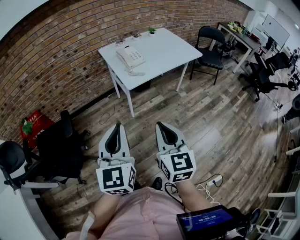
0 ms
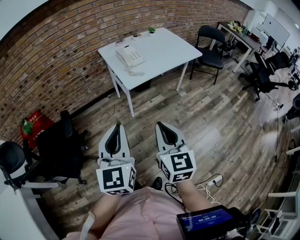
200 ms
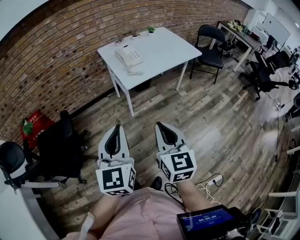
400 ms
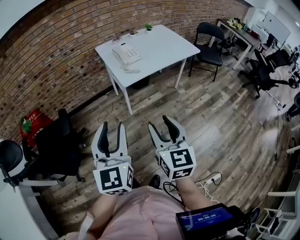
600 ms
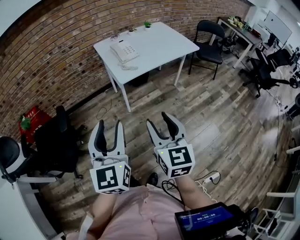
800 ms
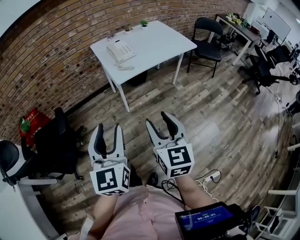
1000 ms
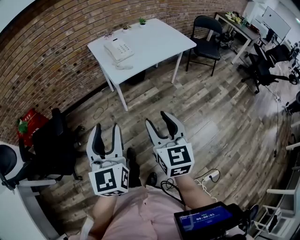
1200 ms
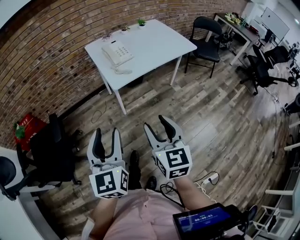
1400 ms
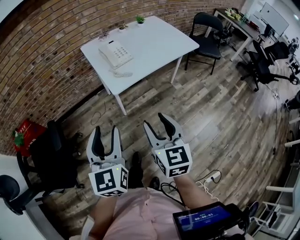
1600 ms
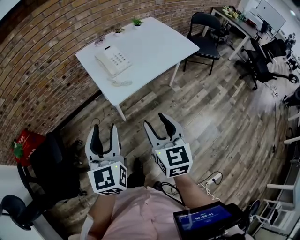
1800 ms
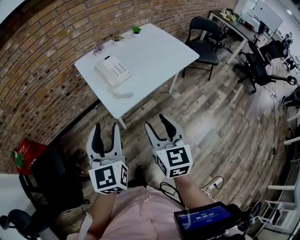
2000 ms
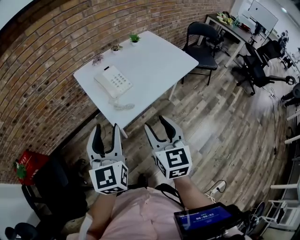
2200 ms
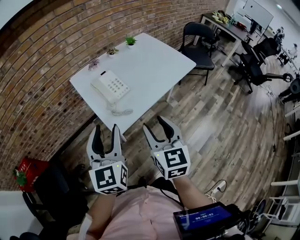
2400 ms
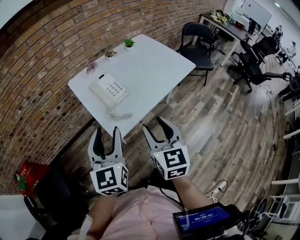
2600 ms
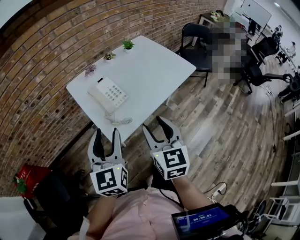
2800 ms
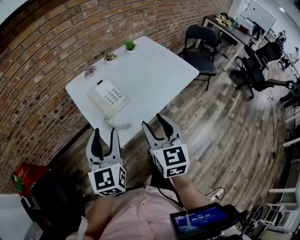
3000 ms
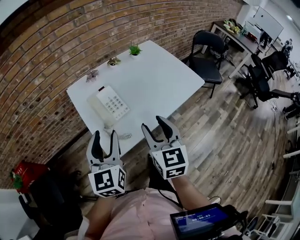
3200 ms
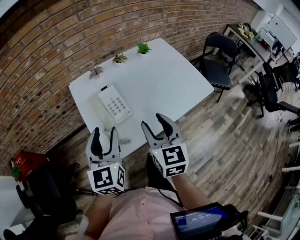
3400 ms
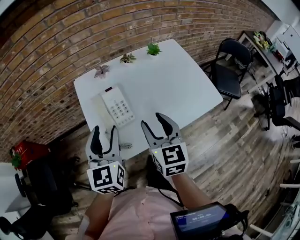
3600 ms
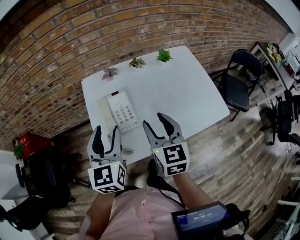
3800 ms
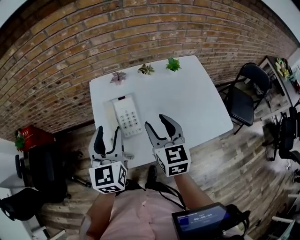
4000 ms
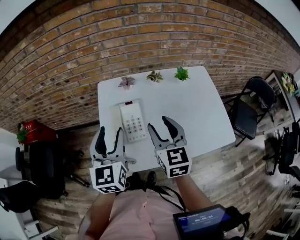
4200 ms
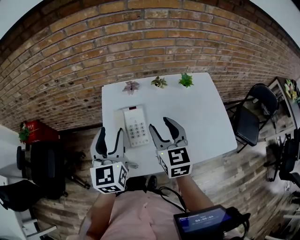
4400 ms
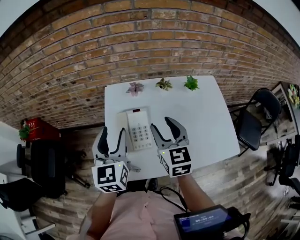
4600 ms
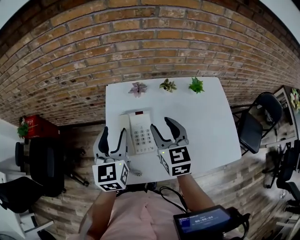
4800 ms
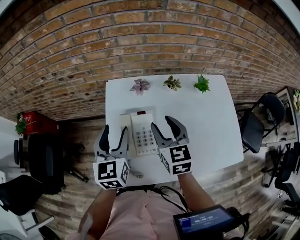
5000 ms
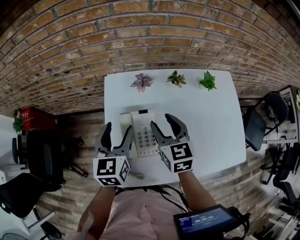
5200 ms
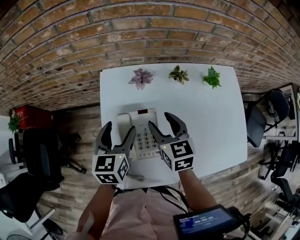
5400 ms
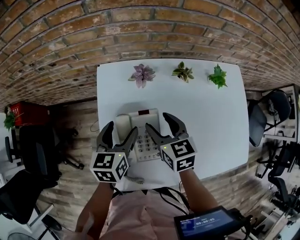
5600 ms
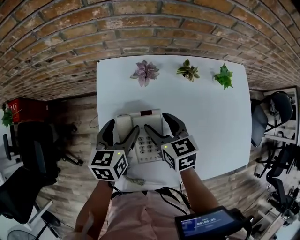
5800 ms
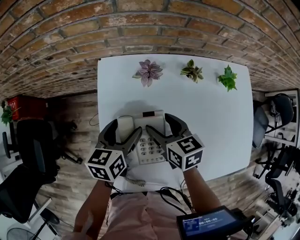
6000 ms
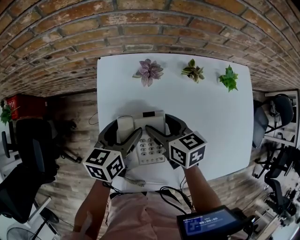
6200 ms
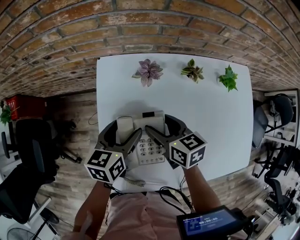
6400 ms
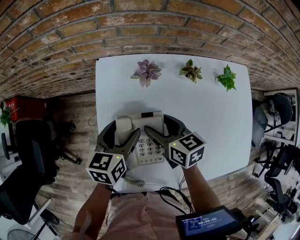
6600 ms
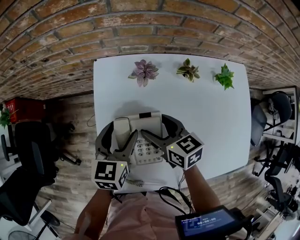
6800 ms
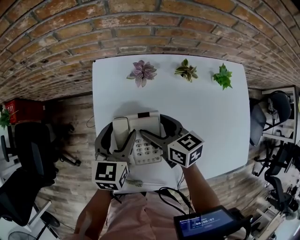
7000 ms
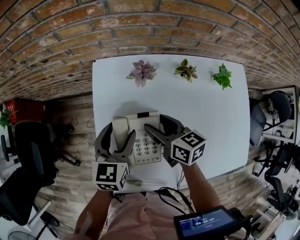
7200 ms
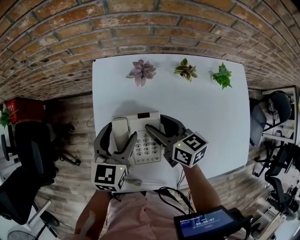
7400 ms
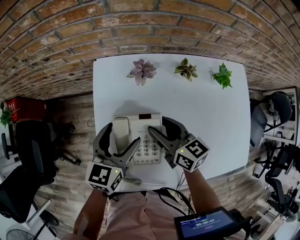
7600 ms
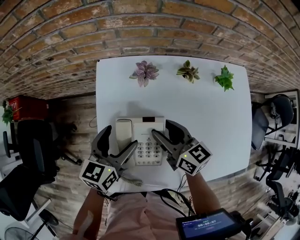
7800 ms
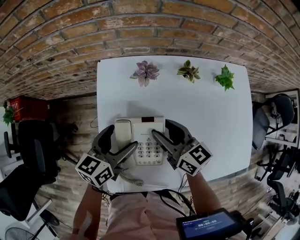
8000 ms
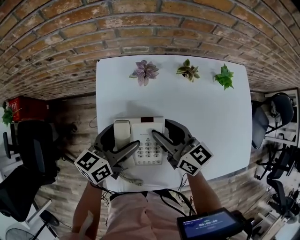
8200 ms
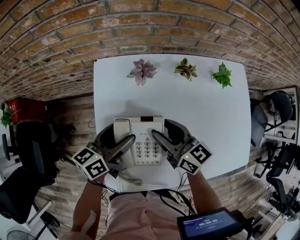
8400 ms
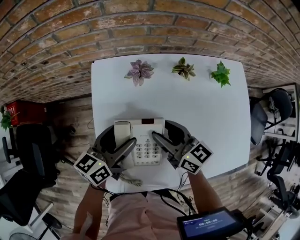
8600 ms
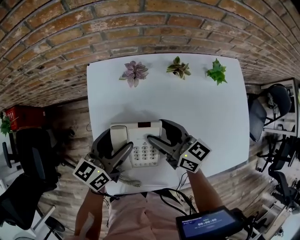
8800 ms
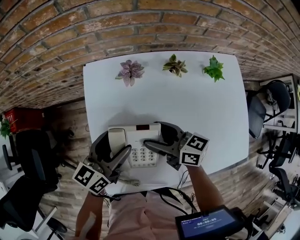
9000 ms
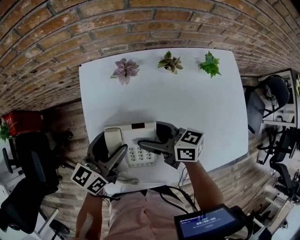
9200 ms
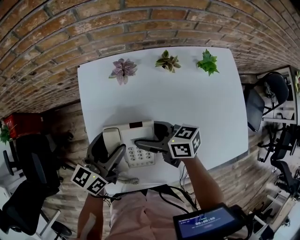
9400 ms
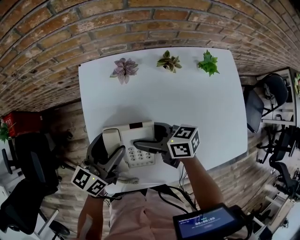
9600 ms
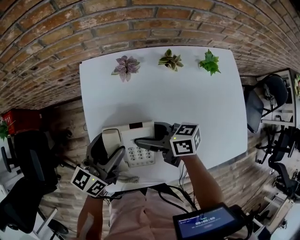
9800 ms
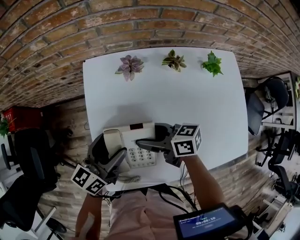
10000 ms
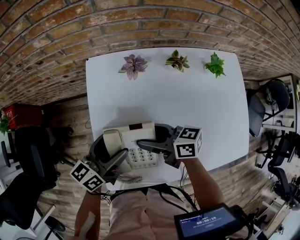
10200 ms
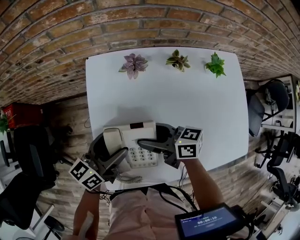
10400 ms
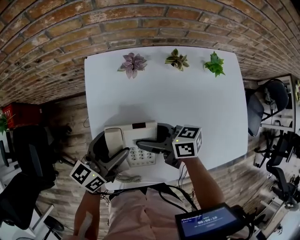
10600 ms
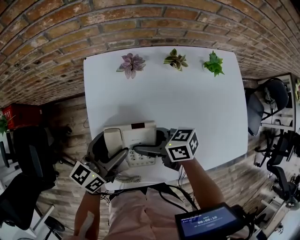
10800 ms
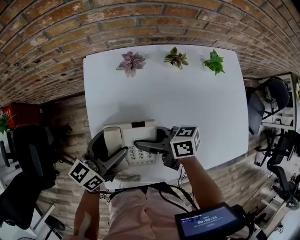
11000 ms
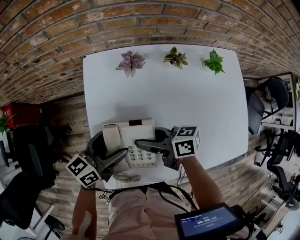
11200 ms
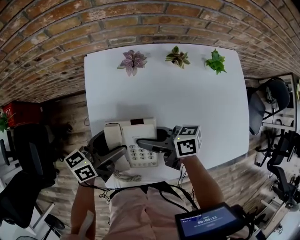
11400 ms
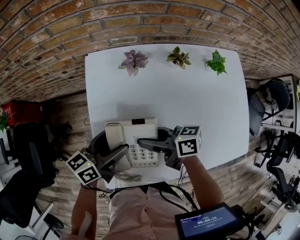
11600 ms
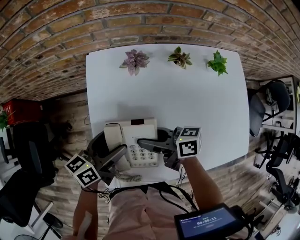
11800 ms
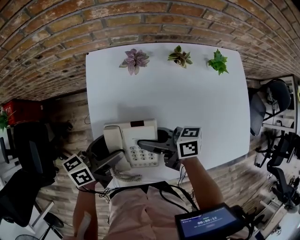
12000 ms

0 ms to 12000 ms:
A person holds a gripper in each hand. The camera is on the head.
0 ms to 1600 ms: The left gripper goes about 15 cm forward and downward, and opens up. The right gripper heads forward, covering some 15 cm, and opens its fingers.
1600 ms to 3000 ms: The grippers both shift forward by approximately 30 cm.
3000 ms to 4400 ms: The left gripper moves about 15 cm, and turns by approximately 30 degrees; the right gripper ends up approximately 25 cm from where it was, and changes its angle by about 30 degrees.
4400 ms to 6000 ms: Both grippers travel together downward and forward, about 25 cm. The left gripper swivels approximately 40 degrees; the right gripper rotates some 40 degrees.
7600 ms to 9000 ms: The right gripper opens up, while the left gripper changes its angle by about 20 degrees.
9000 ms to 10400 ms: The grippers move only a little.
10400 ms to 12000 ms: The grippers move only a little.

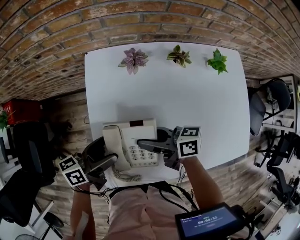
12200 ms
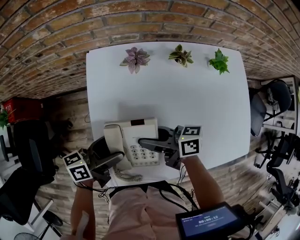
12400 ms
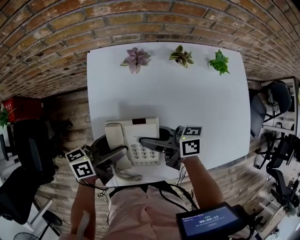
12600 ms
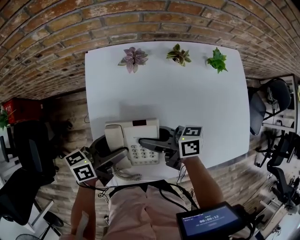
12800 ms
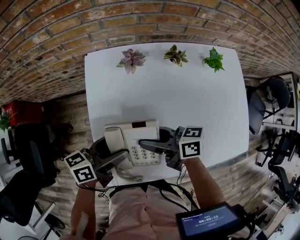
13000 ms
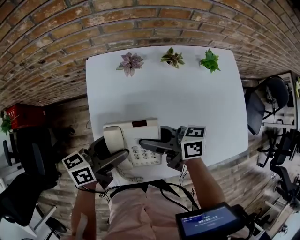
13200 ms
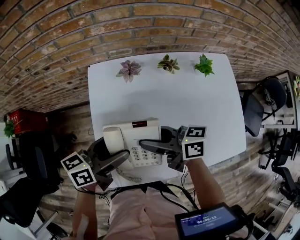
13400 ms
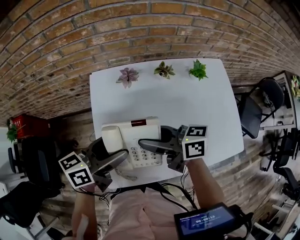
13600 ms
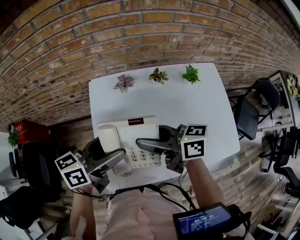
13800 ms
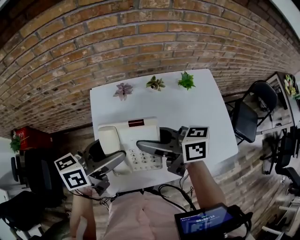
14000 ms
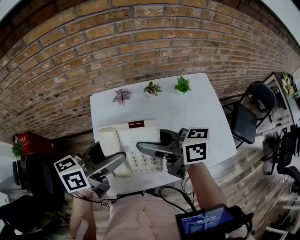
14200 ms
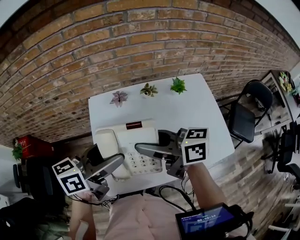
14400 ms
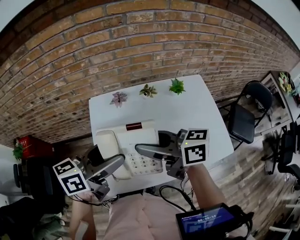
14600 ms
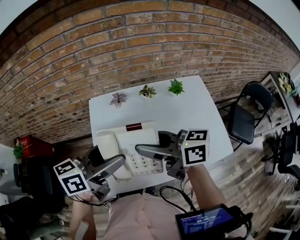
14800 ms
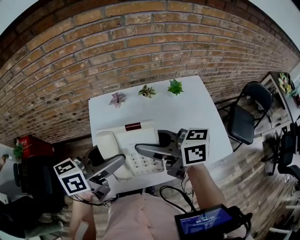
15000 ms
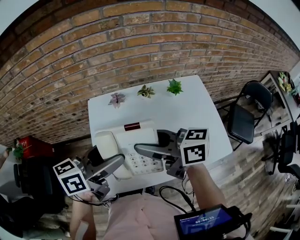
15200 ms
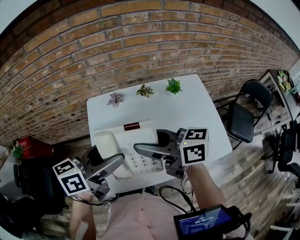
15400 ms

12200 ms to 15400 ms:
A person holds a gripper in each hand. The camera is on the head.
12200 ms to 13800 ms: Both grippers travel together upward, some 15 cm.
13800 ms to 15400 ms: The grippers both shift upward by about 10 cm.

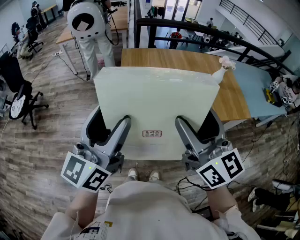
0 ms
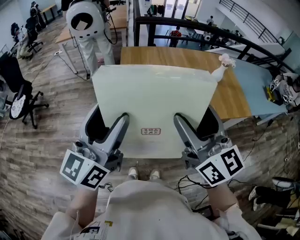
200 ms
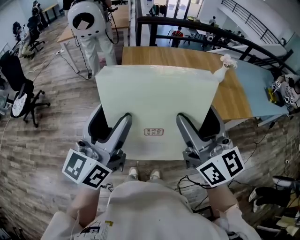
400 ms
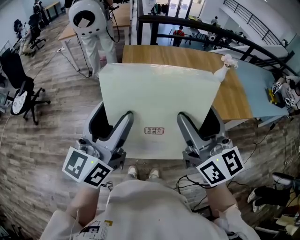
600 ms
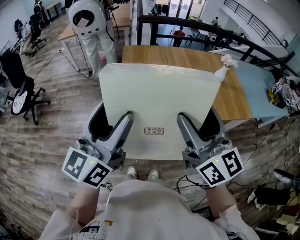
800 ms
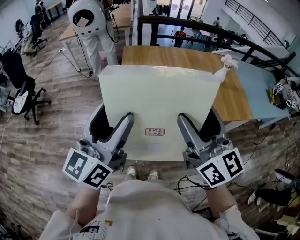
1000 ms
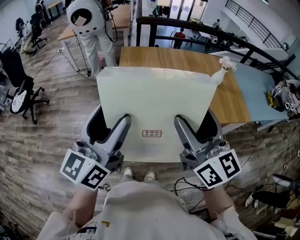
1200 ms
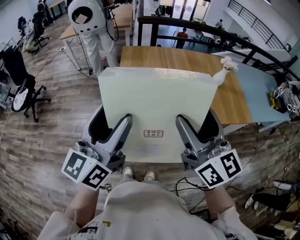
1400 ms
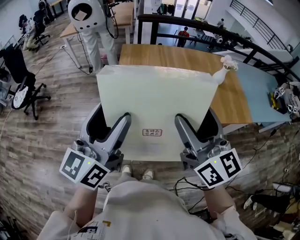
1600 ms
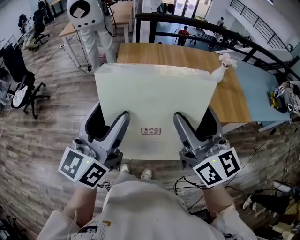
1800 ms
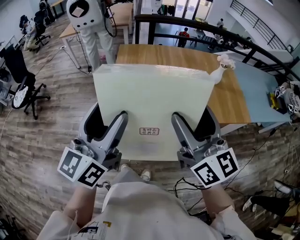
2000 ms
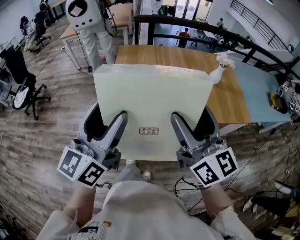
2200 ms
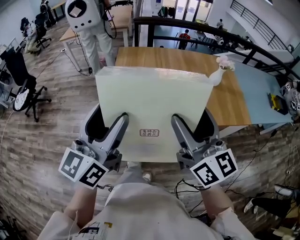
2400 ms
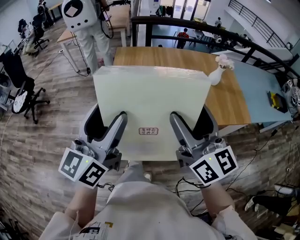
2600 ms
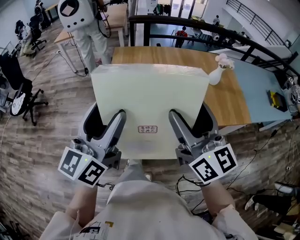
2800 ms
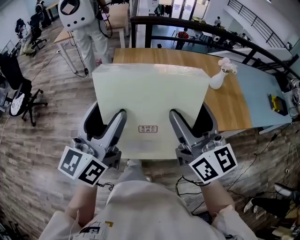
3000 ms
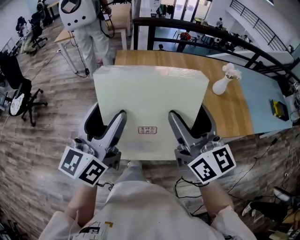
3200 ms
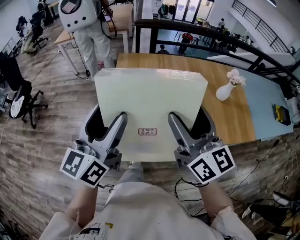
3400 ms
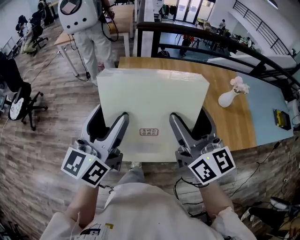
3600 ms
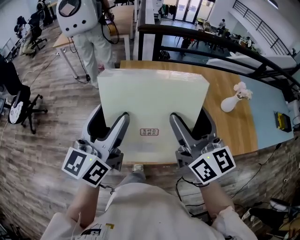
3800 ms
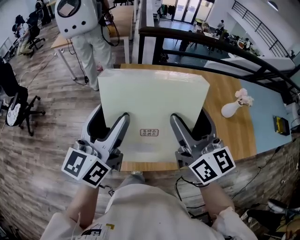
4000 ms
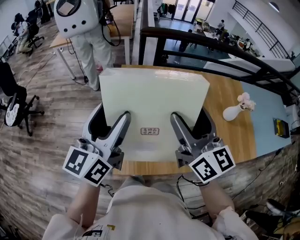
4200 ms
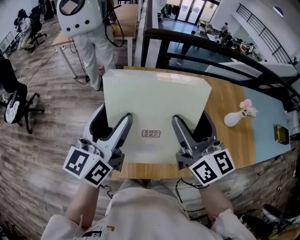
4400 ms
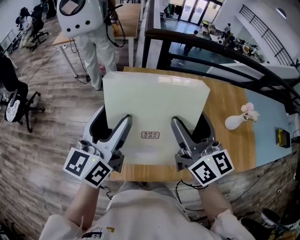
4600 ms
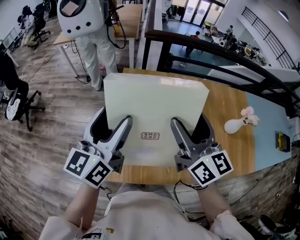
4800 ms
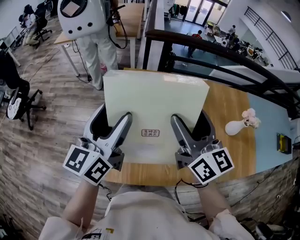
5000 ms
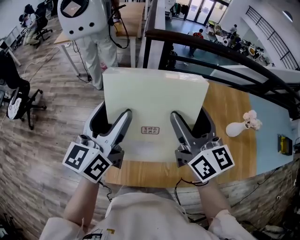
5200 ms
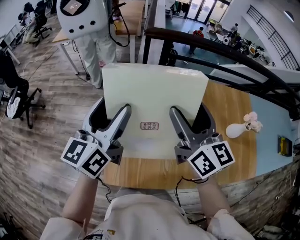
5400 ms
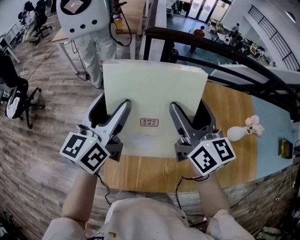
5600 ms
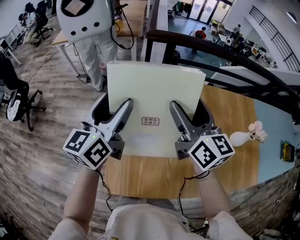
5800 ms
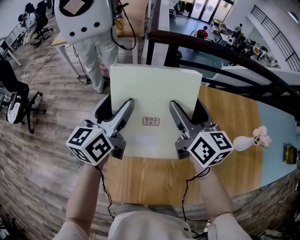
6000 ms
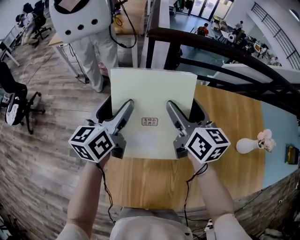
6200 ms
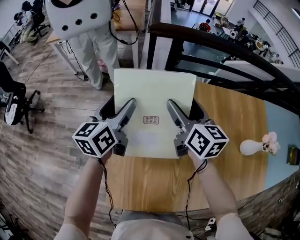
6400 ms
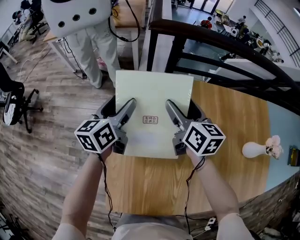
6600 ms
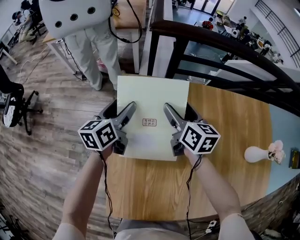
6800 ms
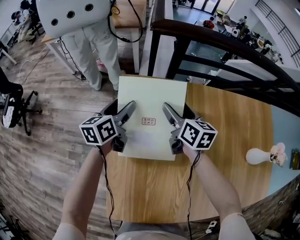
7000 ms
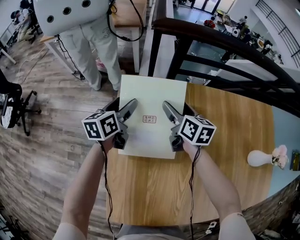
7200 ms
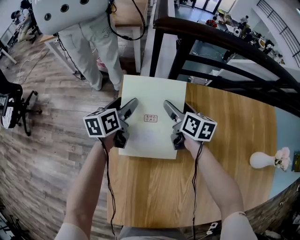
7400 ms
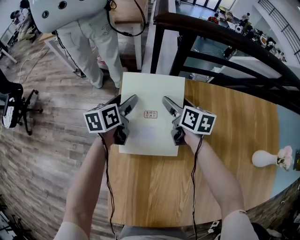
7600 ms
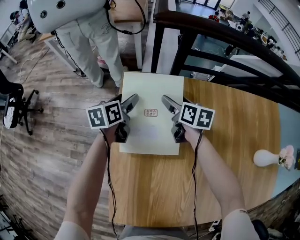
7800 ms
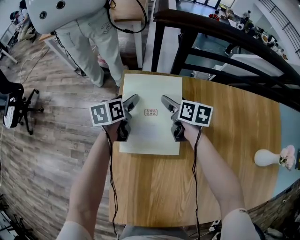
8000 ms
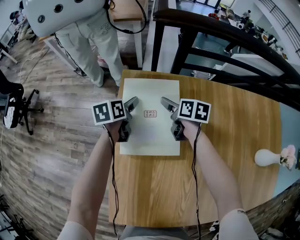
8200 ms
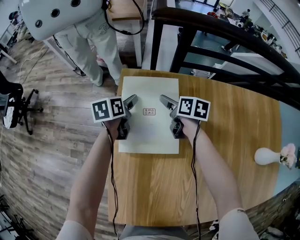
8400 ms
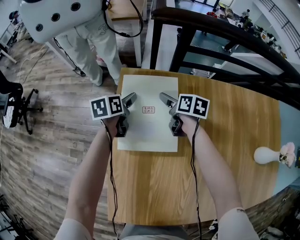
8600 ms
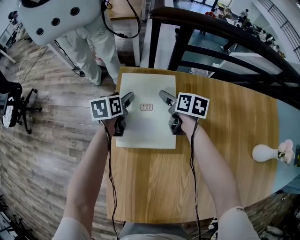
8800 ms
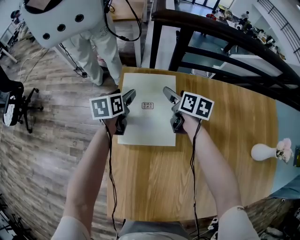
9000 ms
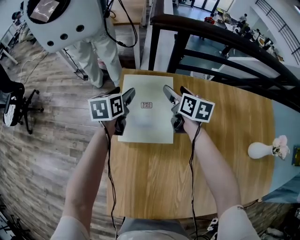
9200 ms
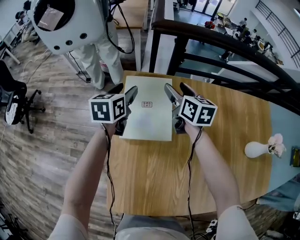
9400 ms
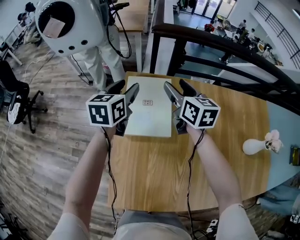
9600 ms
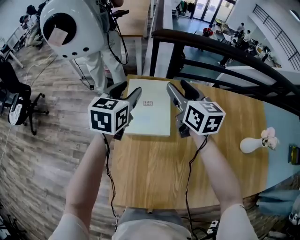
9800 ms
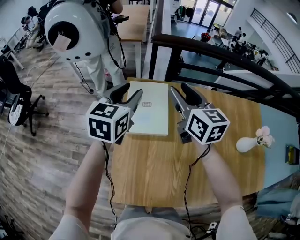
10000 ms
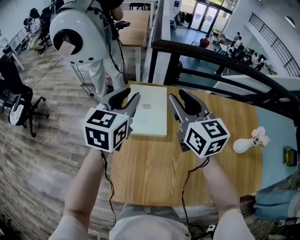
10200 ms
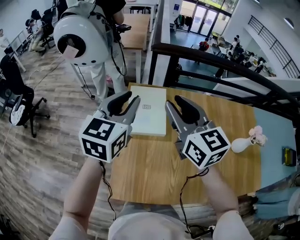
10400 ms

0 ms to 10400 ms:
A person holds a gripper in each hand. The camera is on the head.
0 ms to 1400 ms: Both grippers move to the right, some 10 cm.
1400 ms to 3000 ms: The two grippers go about 10 cm forward.
3000 ms to 4400 ms: The grippers both shift forward by roughly 30 cm.
4400 ms to 6000 ms: The grippers both shift forward by some 25 cm.
6000 ms to 7400 ms: Both grippers move downward and forward, roughly 35 cm. The right gripper swivels roughly 30 degrees, while the left gripper swivels approximately 30 degrees.
7400 ms to 9000 ms: The right gripper goes downward and returns, about 10 cm each way.
9000 ms to 10400 ms: Both grippers travel together upward and backward, some 50 cm. The right gripper swivels about 50 degrees, and closes up. Meanwhile the left gripper turns by roughly 40 degrees, and closes up.
